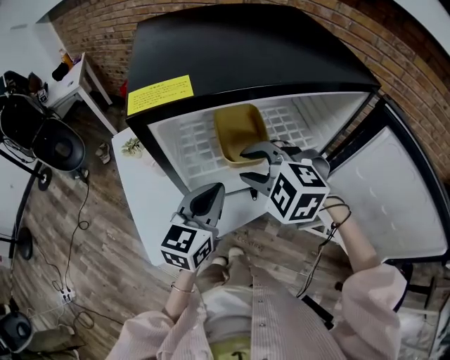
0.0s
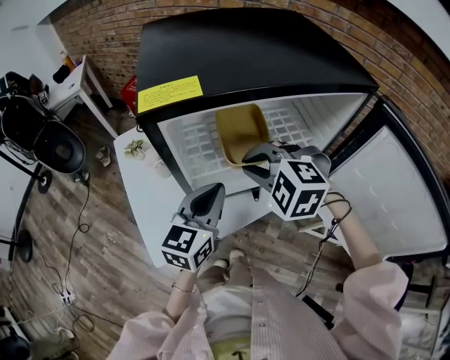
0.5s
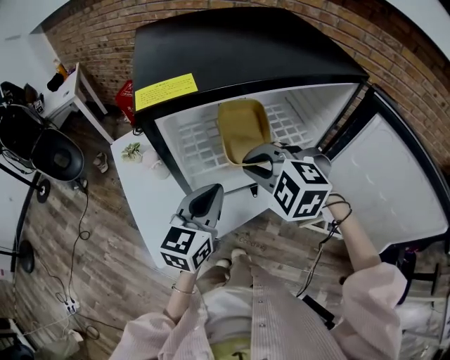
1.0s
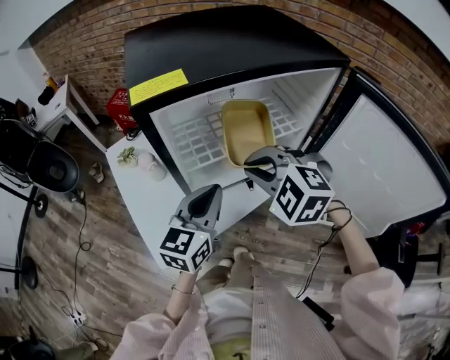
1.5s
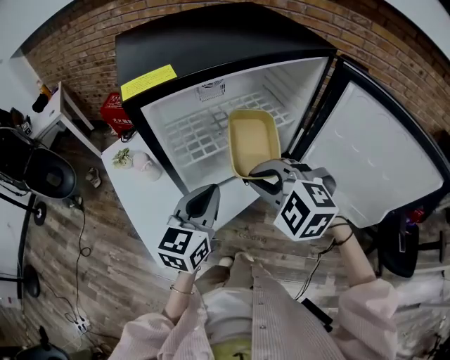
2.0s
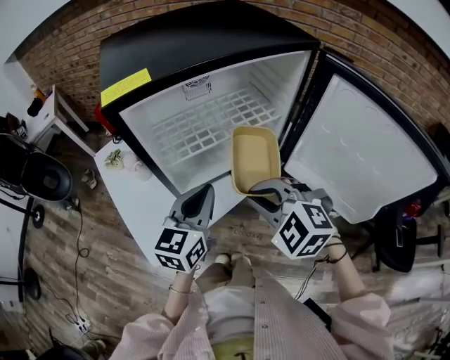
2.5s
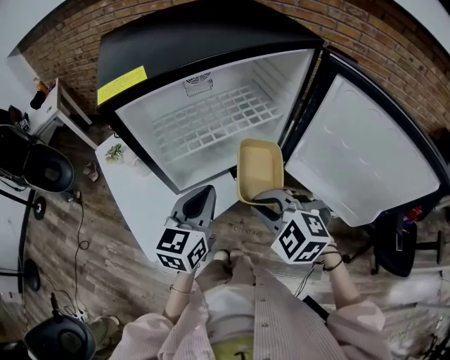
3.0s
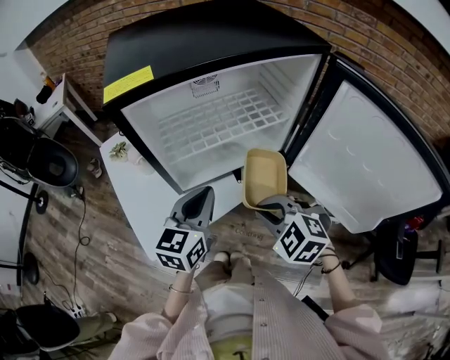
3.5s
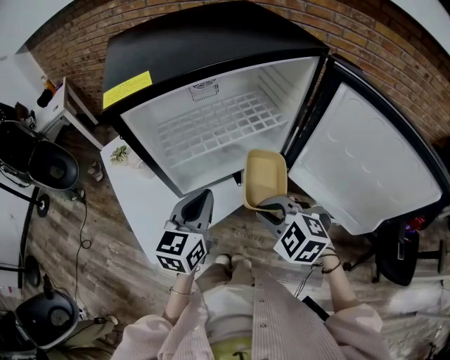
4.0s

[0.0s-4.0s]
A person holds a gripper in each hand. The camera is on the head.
0.0s to 2.0s: The right gripper is displaced backward by roughly 10 cm, and closes up.
2.0s to 4.0s: The right gripper travels downward, backward and to the right by about 10 cm.

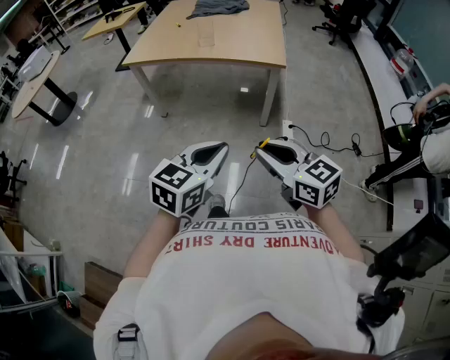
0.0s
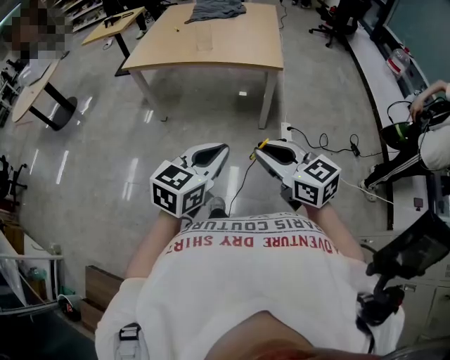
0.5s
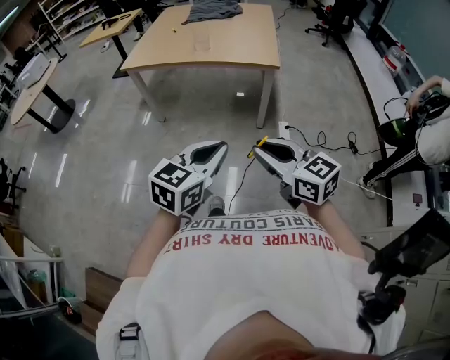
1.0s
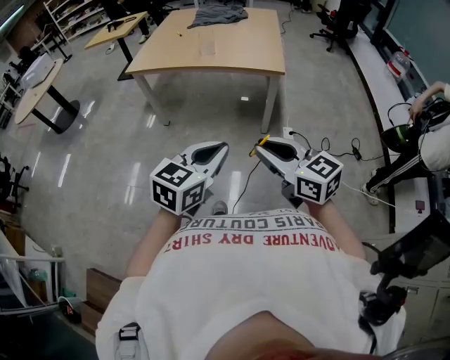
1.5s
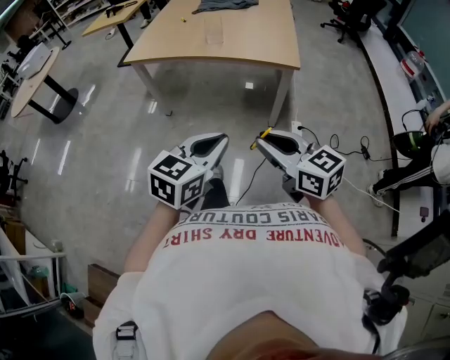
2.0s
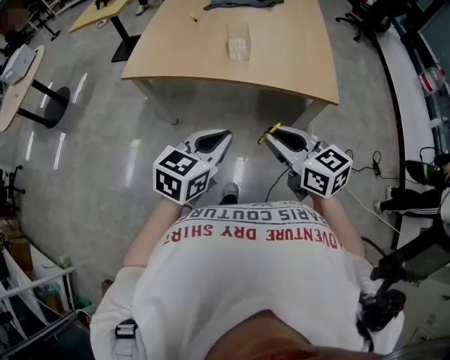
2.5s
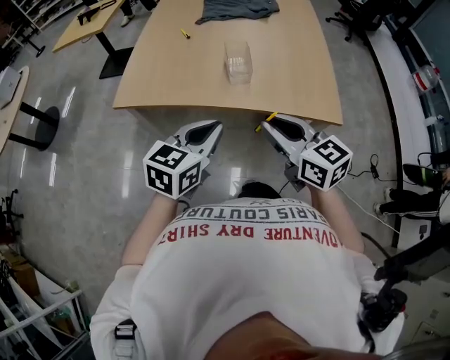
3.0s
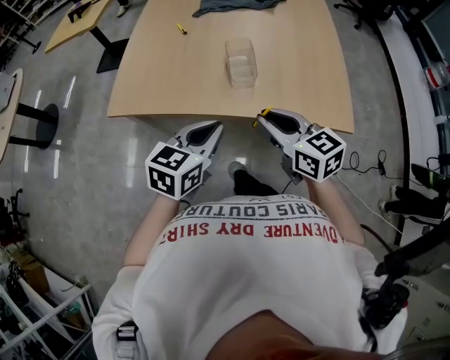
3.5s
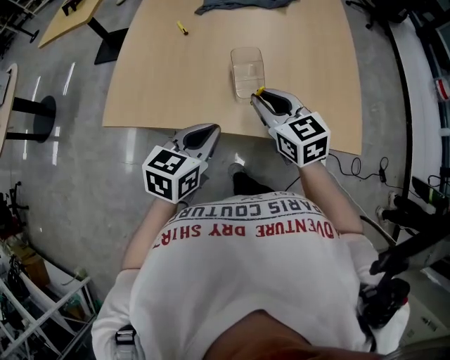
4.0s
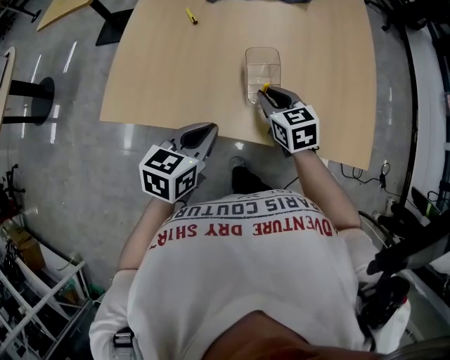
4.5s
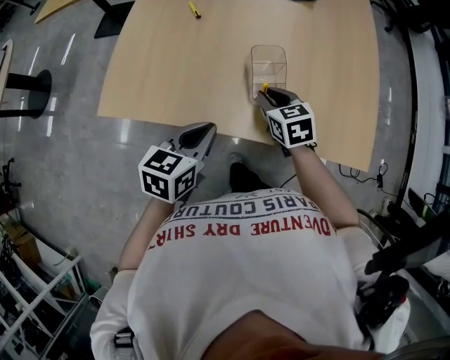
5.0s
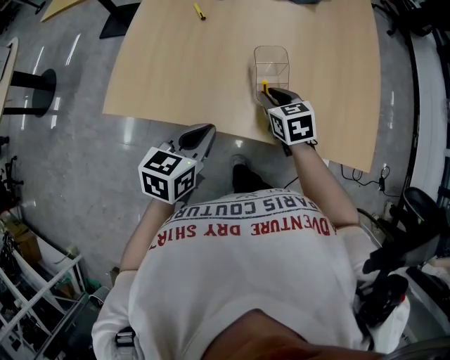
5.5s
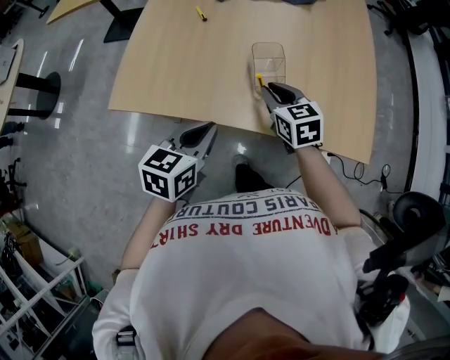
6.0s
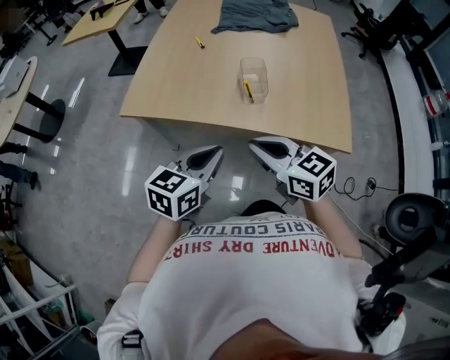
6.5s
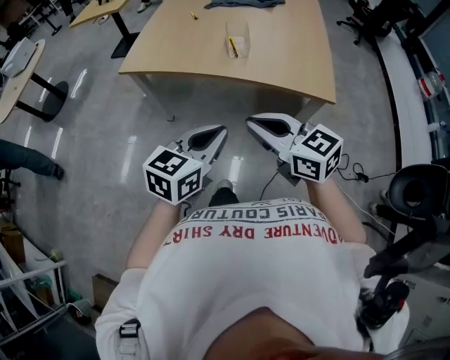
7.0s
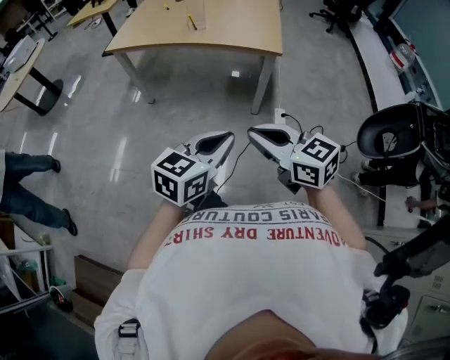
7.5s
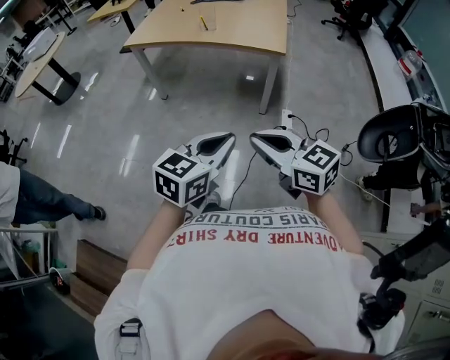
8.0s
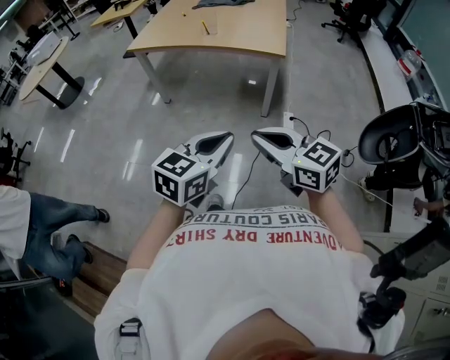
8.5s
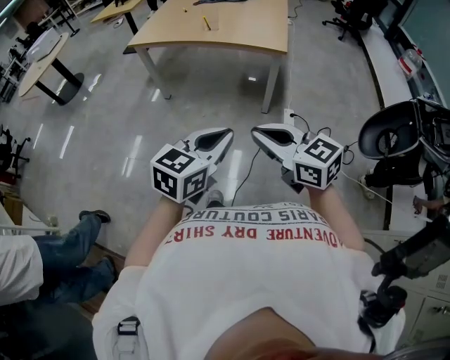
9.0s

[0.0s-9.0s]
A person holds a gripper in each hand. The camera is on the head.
0.0s to 2.0s: The two grippers go some 10 cm forward.
2.0s to 4.5s: The pair of grippers is taken forward, roughly 80 cm. The right gripper swivels roughly 30 degrees.
4.5s to 7.0s: Both grippers are carried backward, approximately 50 cm. The right gripper swivels some 30 degrees.
7.0s to 9.0s: Both grippers are carried backward, about 50 cm.

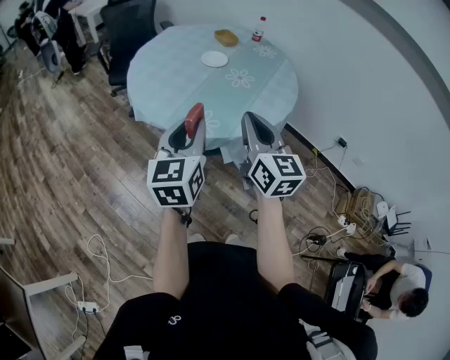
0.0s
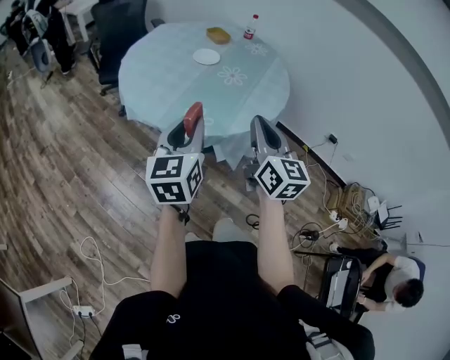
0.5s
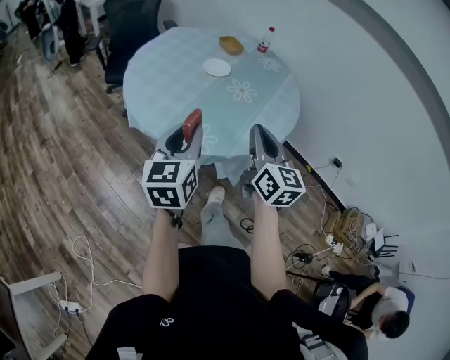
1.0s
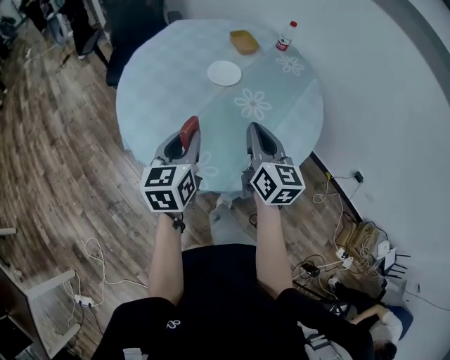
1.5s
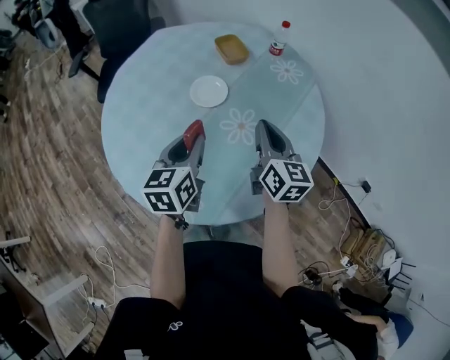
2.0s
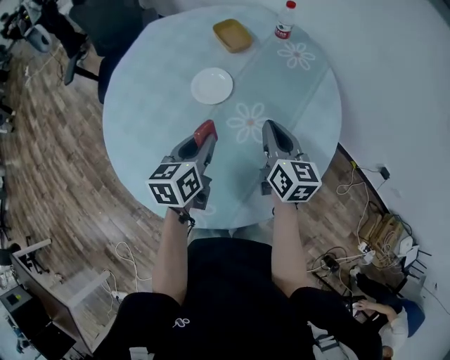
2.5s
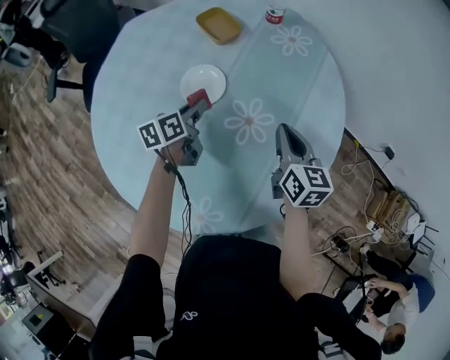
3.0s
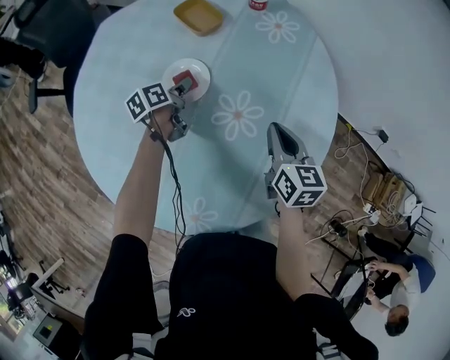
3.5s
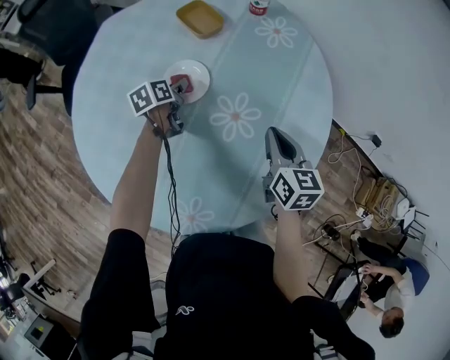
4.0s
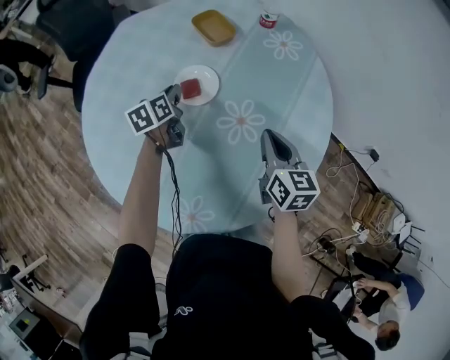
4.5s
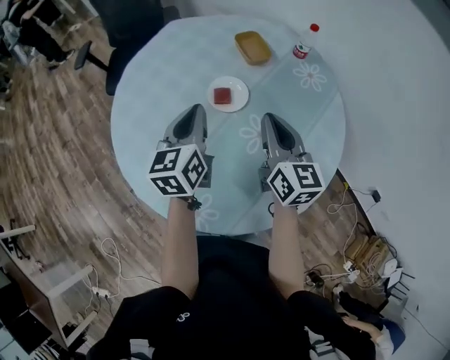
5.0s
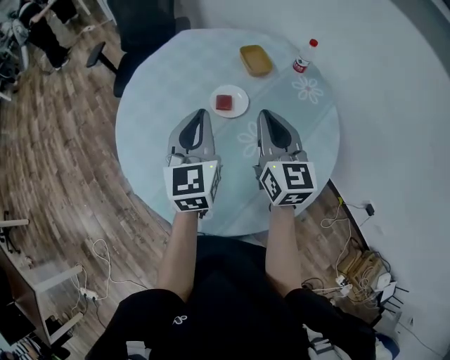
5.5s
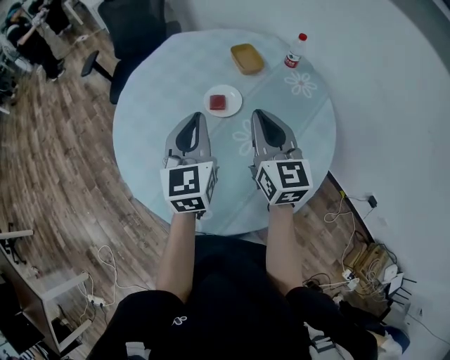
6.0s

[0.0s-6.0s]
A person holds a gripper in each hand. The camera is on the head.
0.0s to 2.0s: Both grippers are carried forward, some 40 cm.
2.0s to 4.0s: The right gripper moves downward, approximately 10 cm, and turns by some 20 degrees; the left gripper heads forward and downward, covering some 35 cm, and swivels about 30 degrees.
4.0s to 6.0s: The right gripper shifts roughly 20 cm upward, and turns by roughly 40 degrees; the left gripper travels upward by roughly 30 cm, tips its fingers upward by some 40 degrees, and closes its fingers.

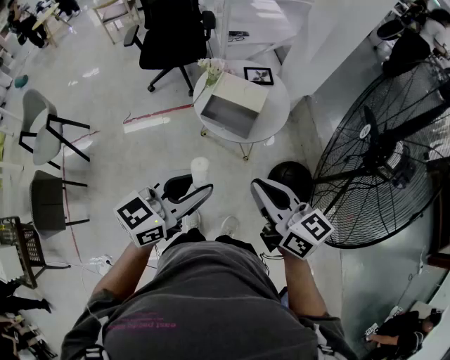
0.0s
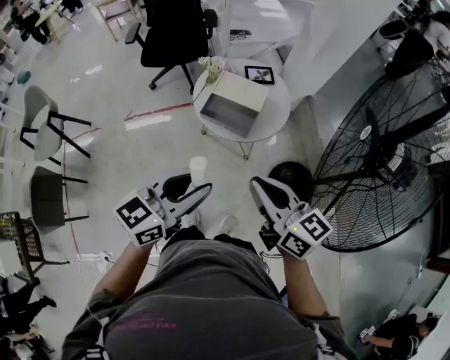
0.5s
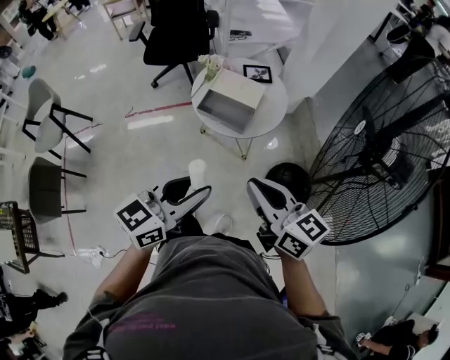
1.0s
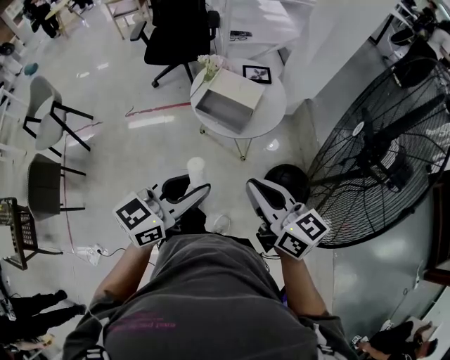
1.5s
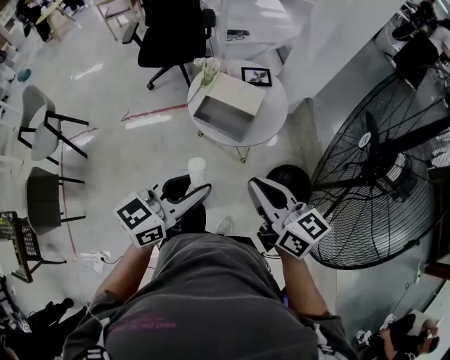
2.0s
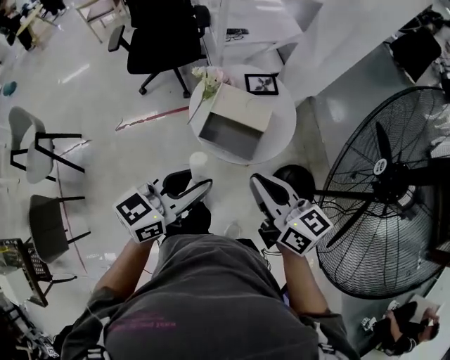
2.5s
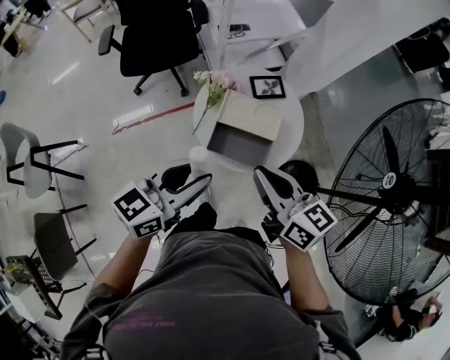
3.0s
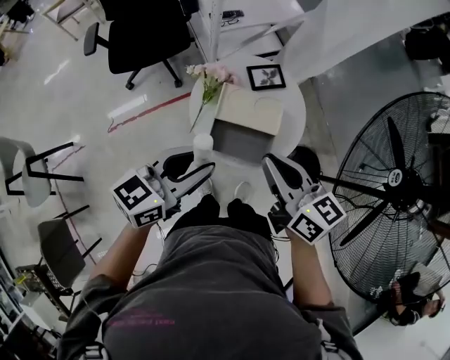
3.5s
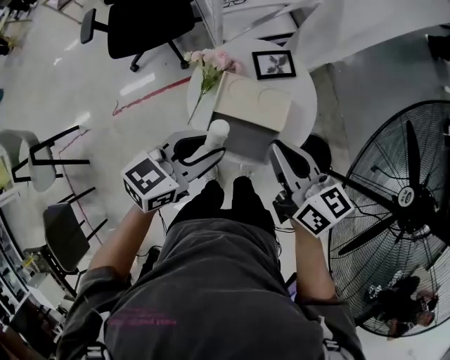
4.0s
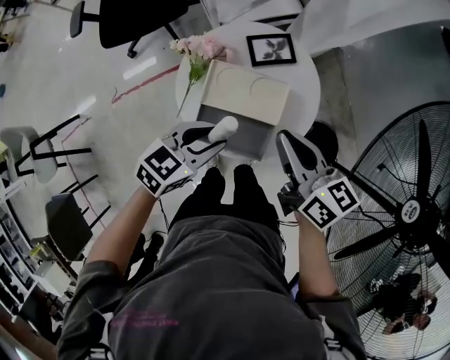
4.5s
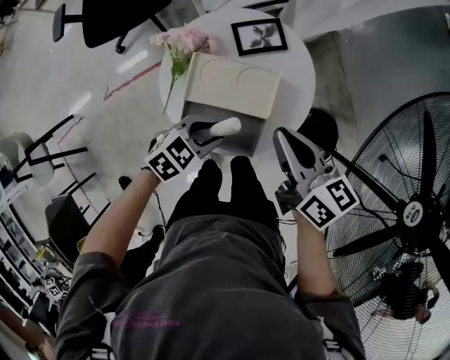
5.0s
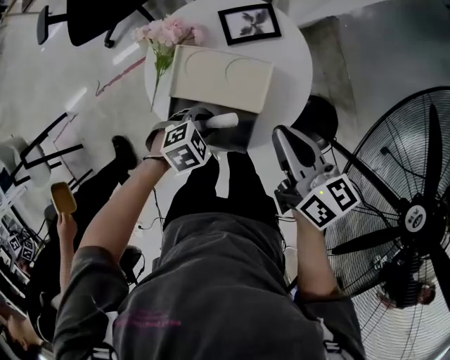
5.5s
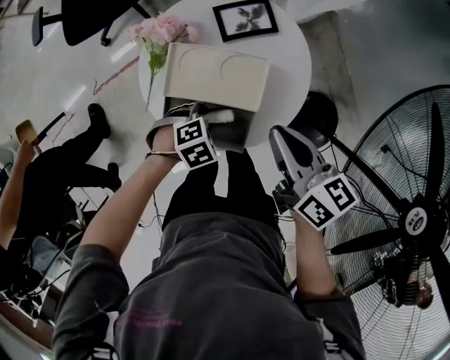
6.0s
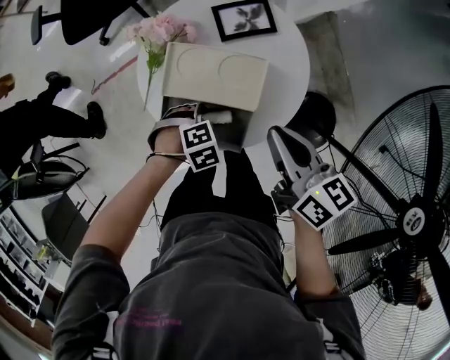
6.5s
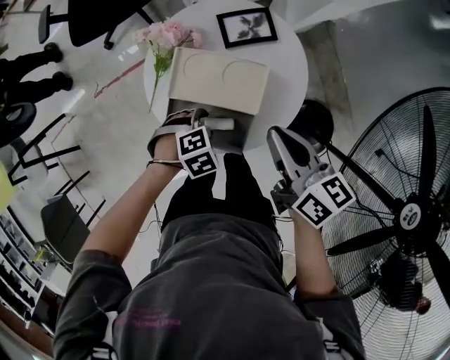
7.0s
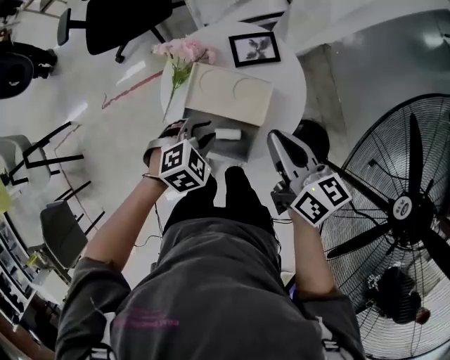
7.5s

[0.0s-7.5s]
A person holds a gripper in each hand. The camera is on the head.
0.0s to 2.0s: The right gripper ends up some 5 cm from where it was.
2.0s to 4.0s: Both grippers move forward, some 30 cm.
4.0s to 5.5s: The left gripper moves downward, approximately 30 cm, and tilts its fingers some 40 degrees downward, while the right gripper goes some 15 cm downward, to the right and forward.
5.5s to 7.5s: The left gripper is displaced upward by approximately 10 cm. The right gripper changes place by about 5 cm.
